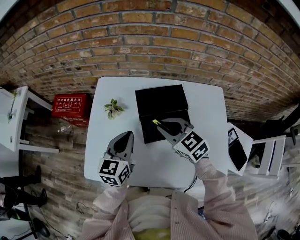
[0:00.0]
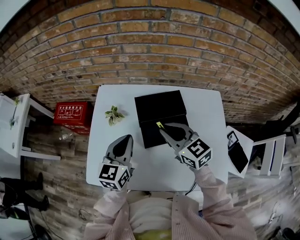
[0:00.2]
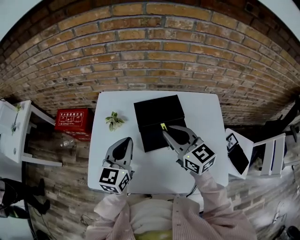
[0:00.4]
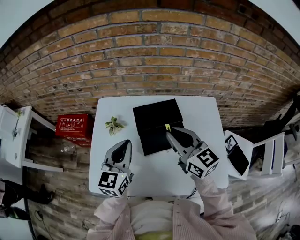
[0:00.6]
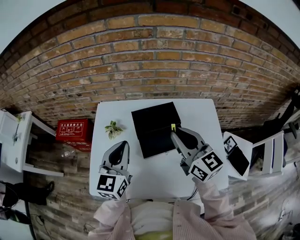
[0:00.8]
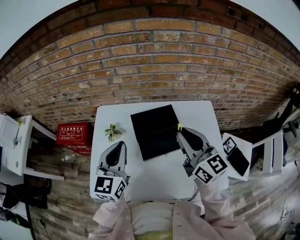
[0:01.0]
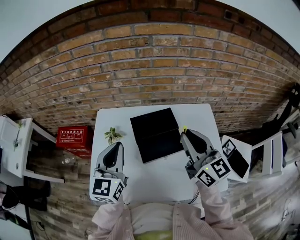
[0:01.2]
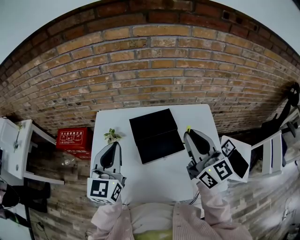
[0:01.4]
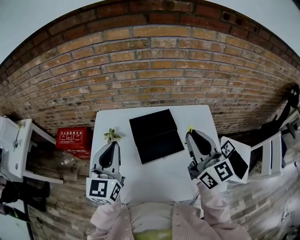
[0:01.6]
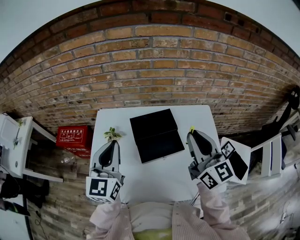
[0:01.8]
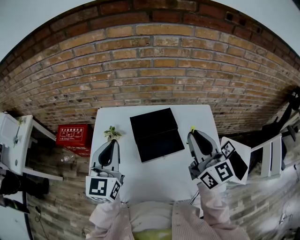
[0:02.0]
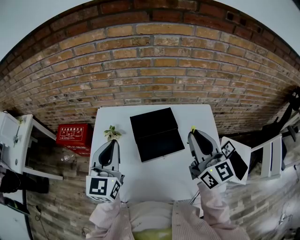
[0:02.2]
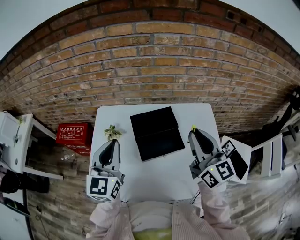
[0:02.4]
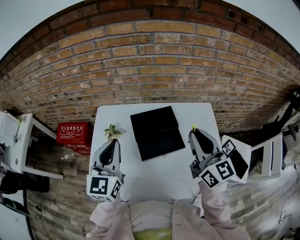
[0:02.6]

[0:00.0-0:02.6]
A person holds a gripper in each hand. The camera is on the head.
0:00.0 to 0:01.2: The right gripper shifts roughly 20 cm upward and to the right, and tilts its fingers some 30 degrees upward, while the left gripper moves upward, roughly 15 cm.
0:01.2 to 0:02.6: The grippers make only small movements.

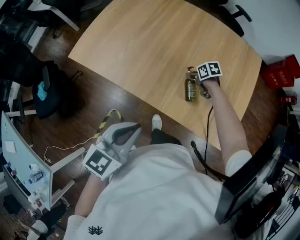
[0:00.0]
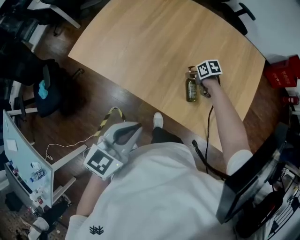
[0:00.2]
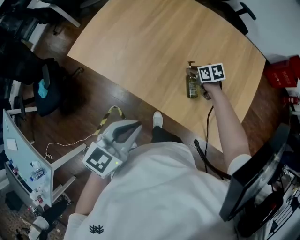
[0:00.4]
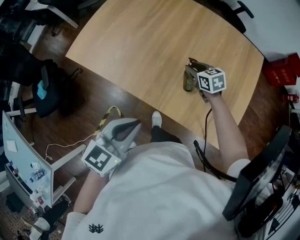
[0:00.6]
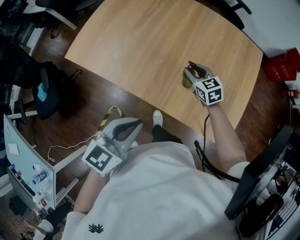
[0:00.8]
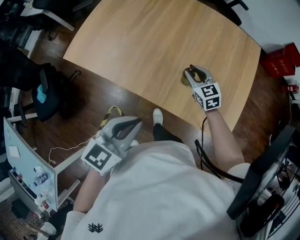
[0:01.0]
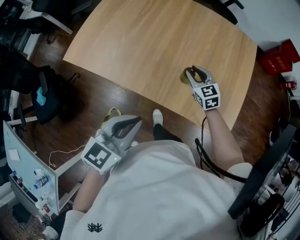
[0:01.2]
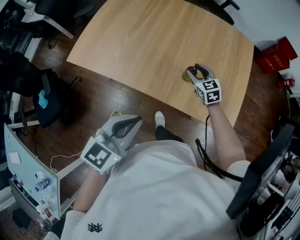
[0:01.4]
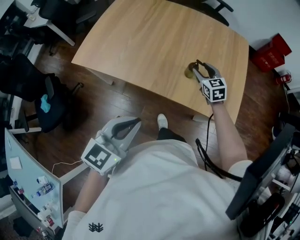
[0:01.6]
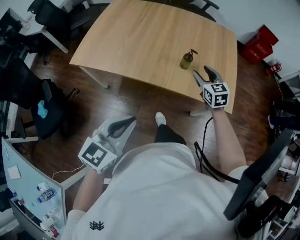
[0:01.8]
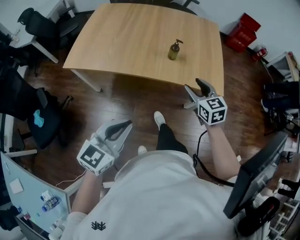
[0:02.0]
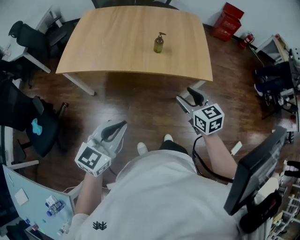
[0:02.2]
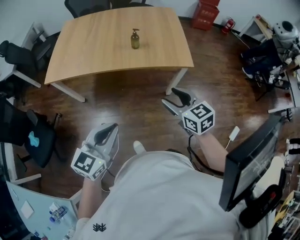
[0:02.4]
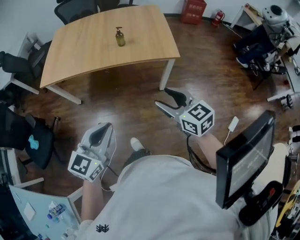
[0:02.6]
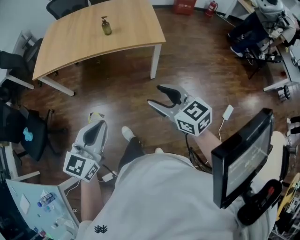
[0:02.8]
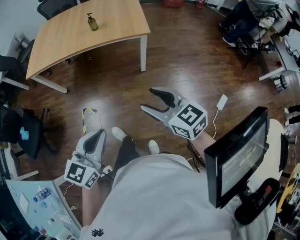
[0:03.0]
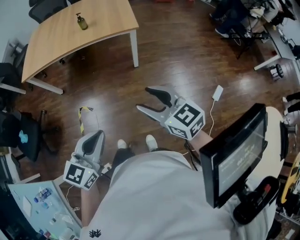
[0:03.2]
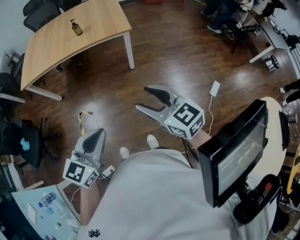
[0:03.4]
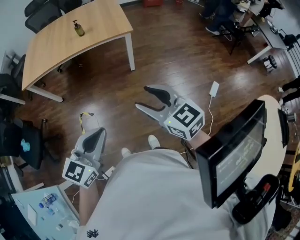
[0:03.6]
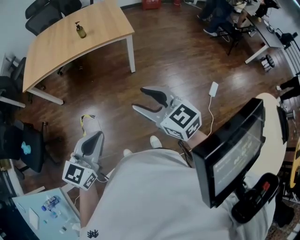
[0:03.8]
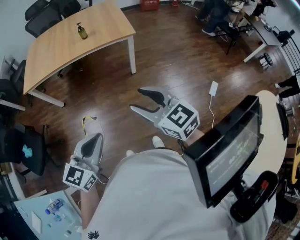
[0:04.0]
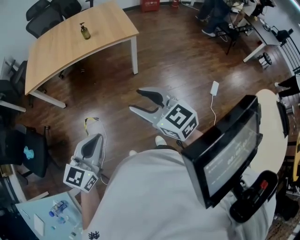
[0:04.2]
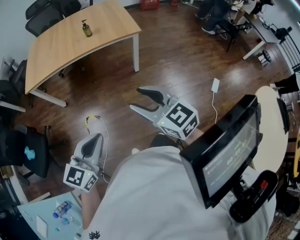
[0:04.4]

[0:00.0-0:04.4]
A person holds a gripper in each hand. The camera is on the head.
0:00.0 to 0:01.4: The right gripper is displaced upward by about 10 cm, and turns by roughly 50 degrees.
0:01.4 to 0:03.0: Both grippers are carried backward, roughly 50 cm. The right gripper swivels roughly 20 degrees.
0:03.0 to 0:04.4: The left gripper travels to the left by roughly 10 cm. Meanwhile the right gripper goes some 15 cm to the left and backward.

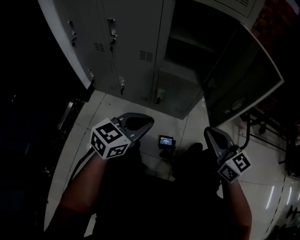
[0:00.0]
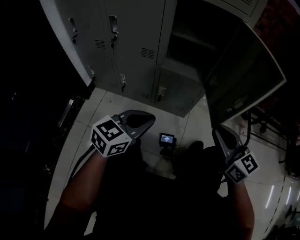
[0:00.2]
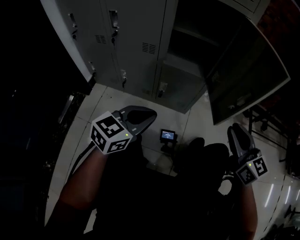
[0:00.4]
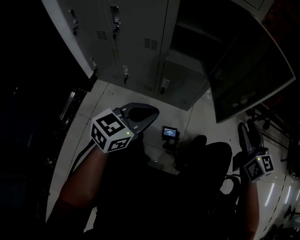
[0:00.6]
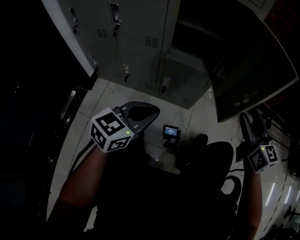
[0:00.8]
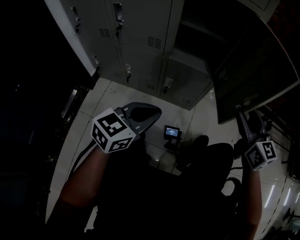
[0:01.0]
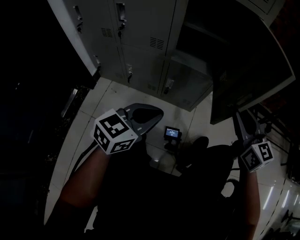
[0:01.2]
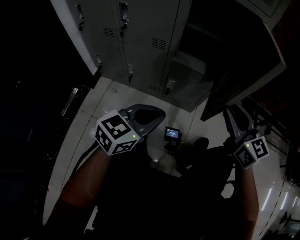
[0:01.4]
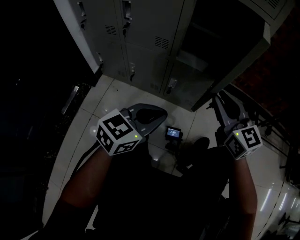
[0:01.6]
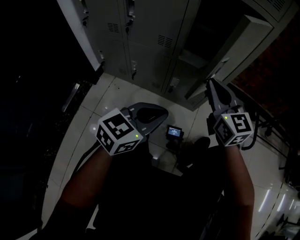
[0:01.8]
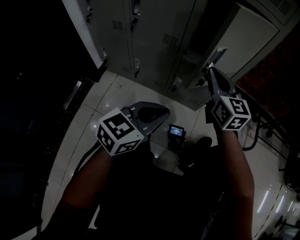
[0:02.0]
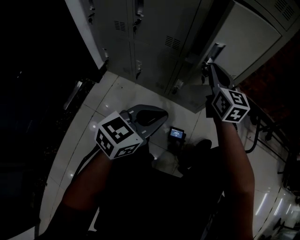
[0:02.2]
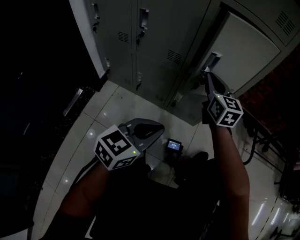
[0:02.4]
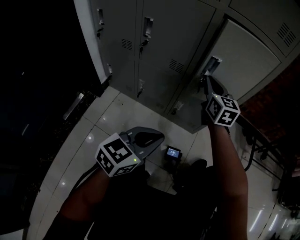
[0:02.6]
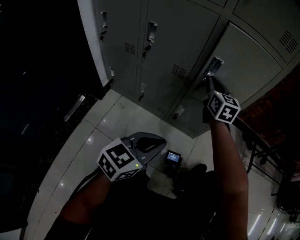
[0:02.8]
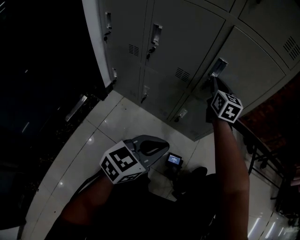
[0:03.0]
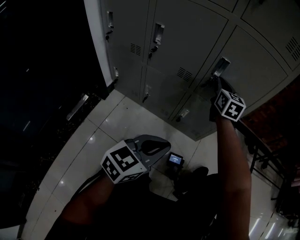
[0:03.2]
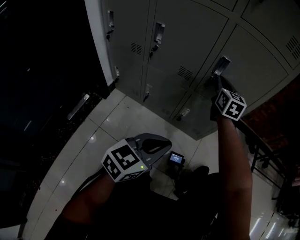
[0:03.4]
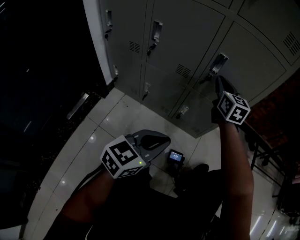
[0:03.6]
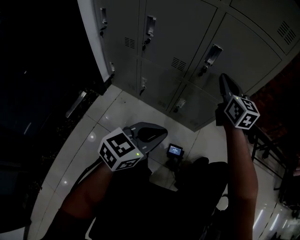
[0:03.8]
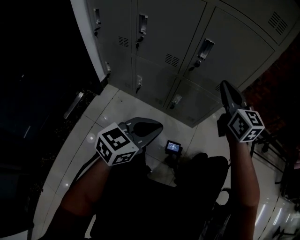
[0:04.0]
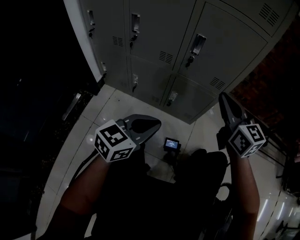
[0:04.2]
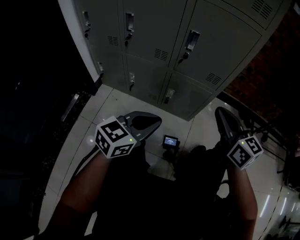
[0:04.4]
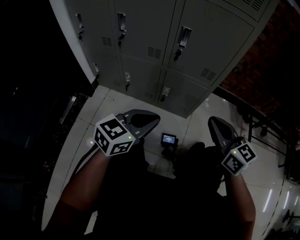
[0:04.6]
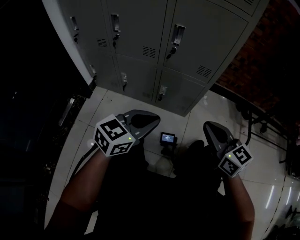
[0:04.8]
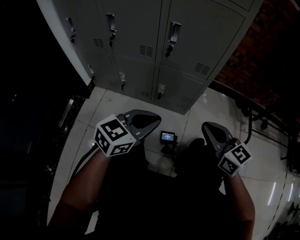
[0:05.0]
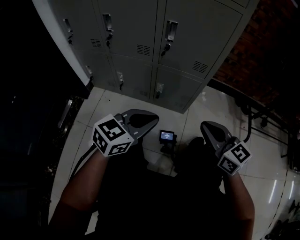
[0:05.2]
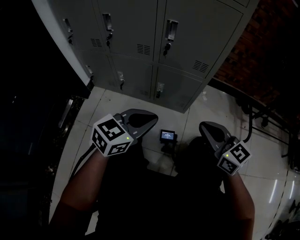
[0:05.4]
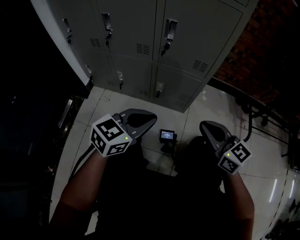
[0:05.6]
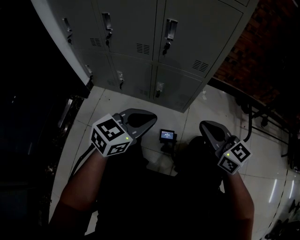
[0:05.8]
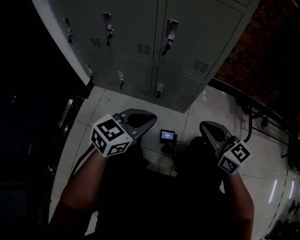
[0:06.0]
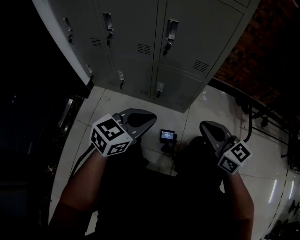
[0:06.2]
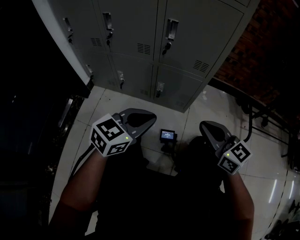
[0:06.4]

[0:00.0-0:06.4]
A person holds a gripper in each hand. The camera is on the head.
0:00.0 to 0:01.6: The right gripper goes about 10 cm forward, moves roughly 10 cm to the right and comes back, and opens up.
0:01.6 to 0:03.2: The right gripper heads forward and to the left, covering roughly 25 cm.
0:03.2 to 0:04.8: The left gripper heads to the right, covering about 5 cm; the right gripper travels backward and to the right by about 35 cm, and changes its angle by some 30 degrees.
0:04.8 to 0:06.4: The grippers stay close to where they were, moving slightly.

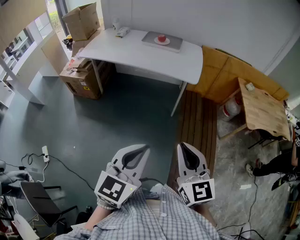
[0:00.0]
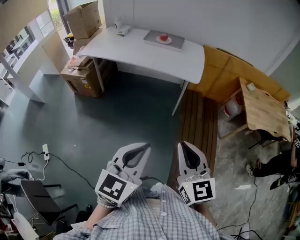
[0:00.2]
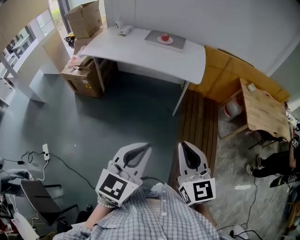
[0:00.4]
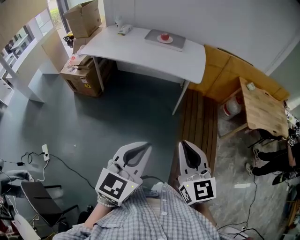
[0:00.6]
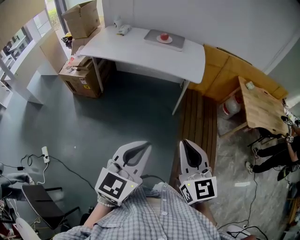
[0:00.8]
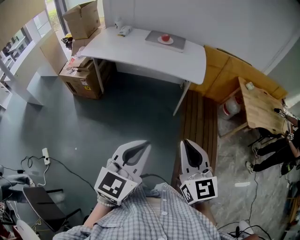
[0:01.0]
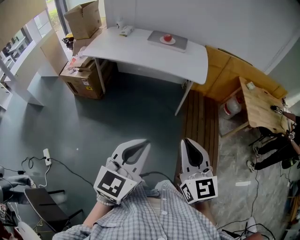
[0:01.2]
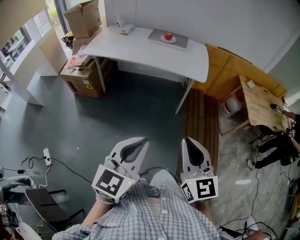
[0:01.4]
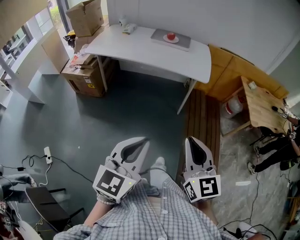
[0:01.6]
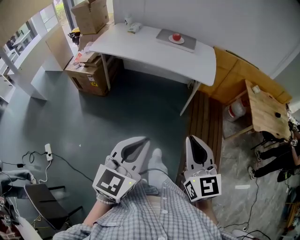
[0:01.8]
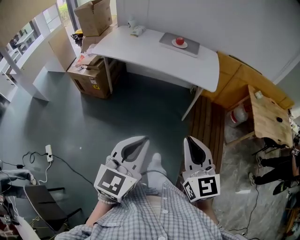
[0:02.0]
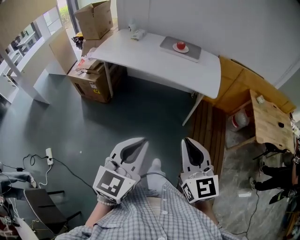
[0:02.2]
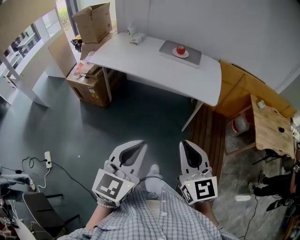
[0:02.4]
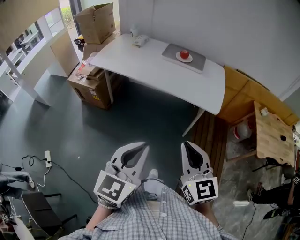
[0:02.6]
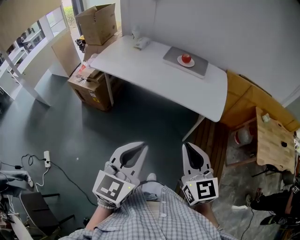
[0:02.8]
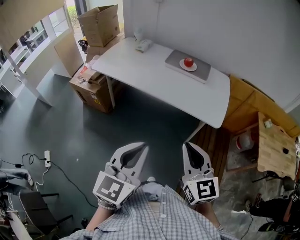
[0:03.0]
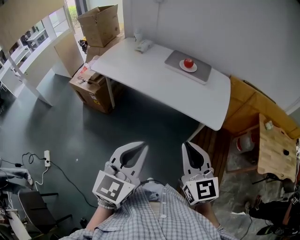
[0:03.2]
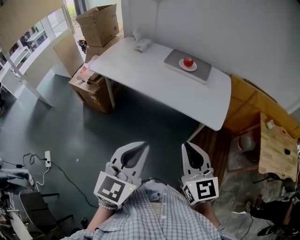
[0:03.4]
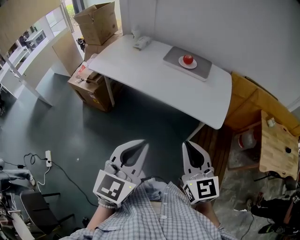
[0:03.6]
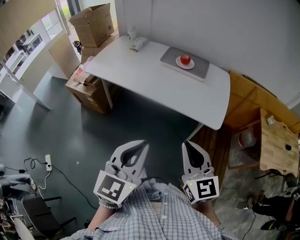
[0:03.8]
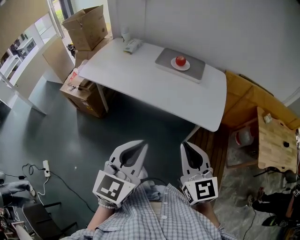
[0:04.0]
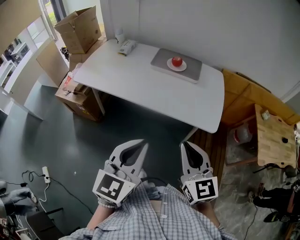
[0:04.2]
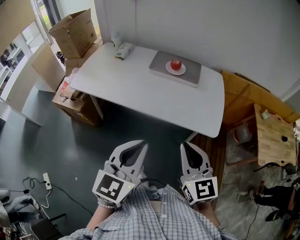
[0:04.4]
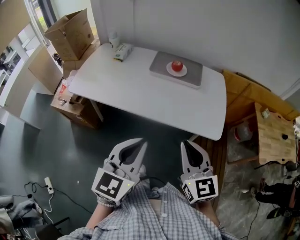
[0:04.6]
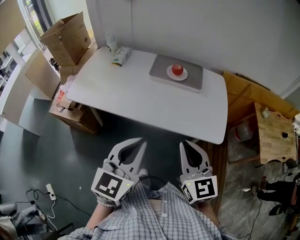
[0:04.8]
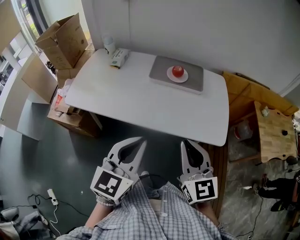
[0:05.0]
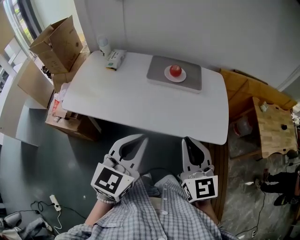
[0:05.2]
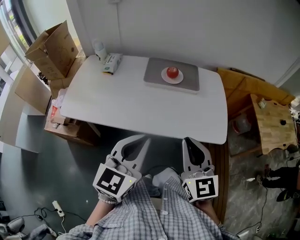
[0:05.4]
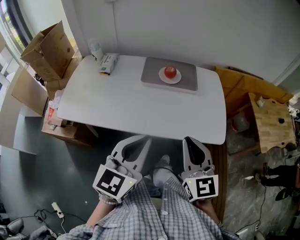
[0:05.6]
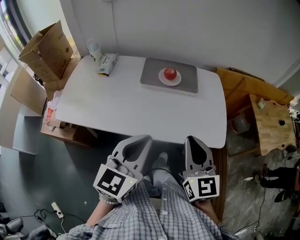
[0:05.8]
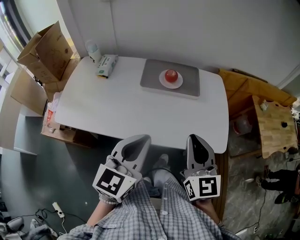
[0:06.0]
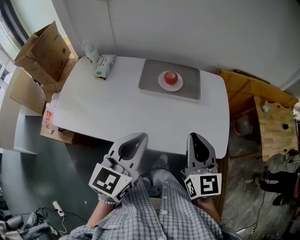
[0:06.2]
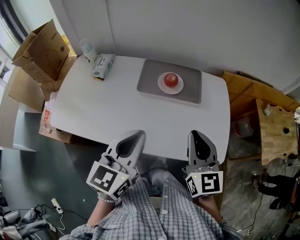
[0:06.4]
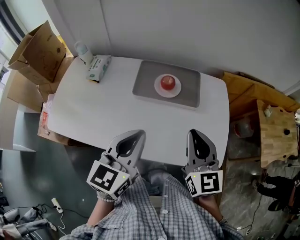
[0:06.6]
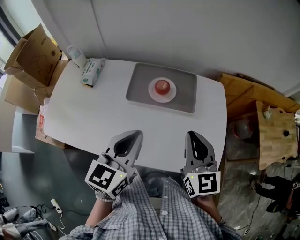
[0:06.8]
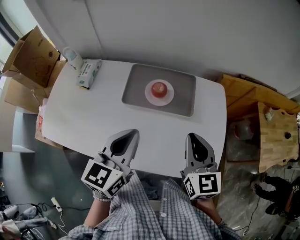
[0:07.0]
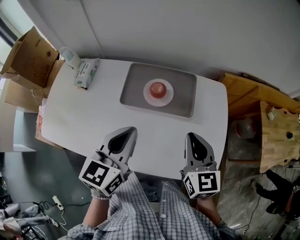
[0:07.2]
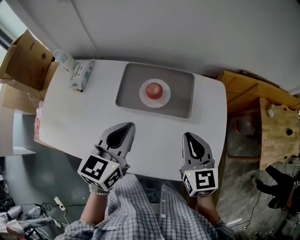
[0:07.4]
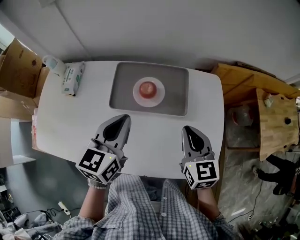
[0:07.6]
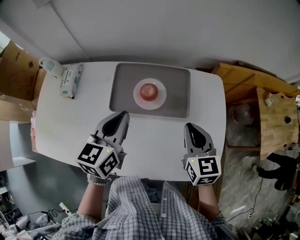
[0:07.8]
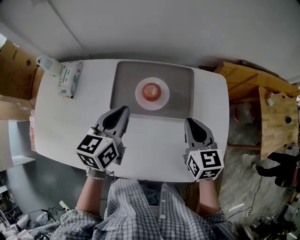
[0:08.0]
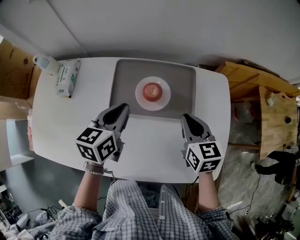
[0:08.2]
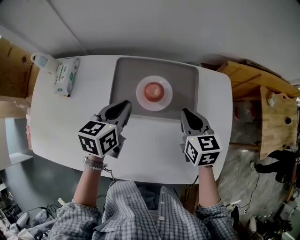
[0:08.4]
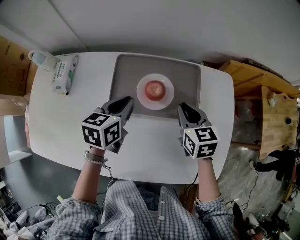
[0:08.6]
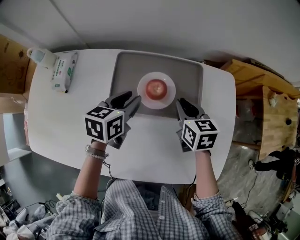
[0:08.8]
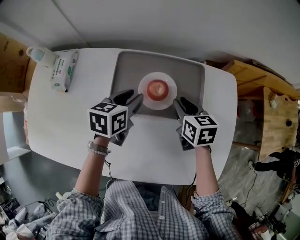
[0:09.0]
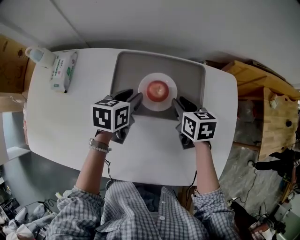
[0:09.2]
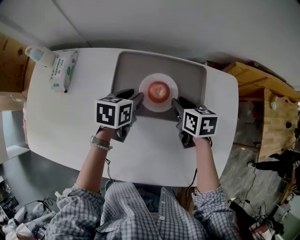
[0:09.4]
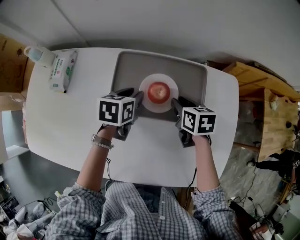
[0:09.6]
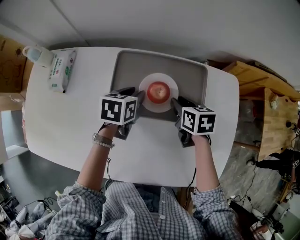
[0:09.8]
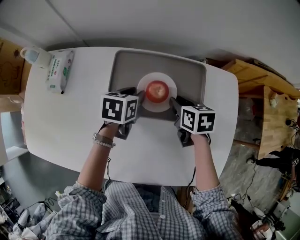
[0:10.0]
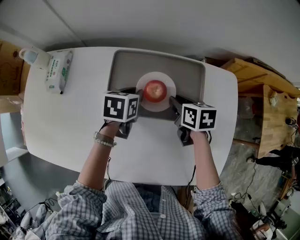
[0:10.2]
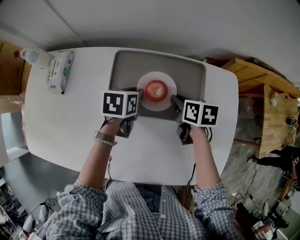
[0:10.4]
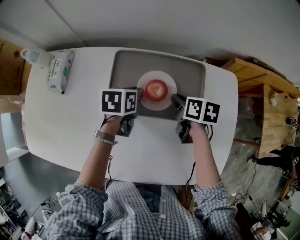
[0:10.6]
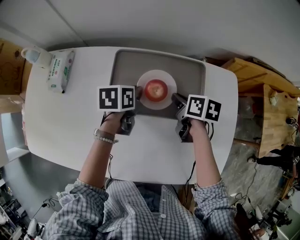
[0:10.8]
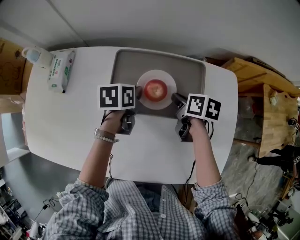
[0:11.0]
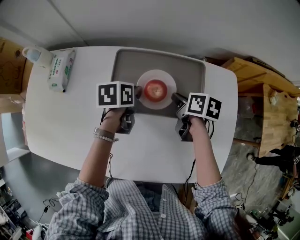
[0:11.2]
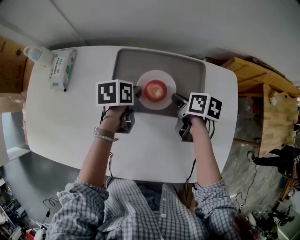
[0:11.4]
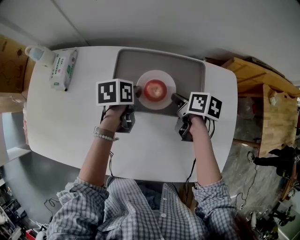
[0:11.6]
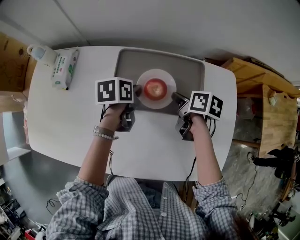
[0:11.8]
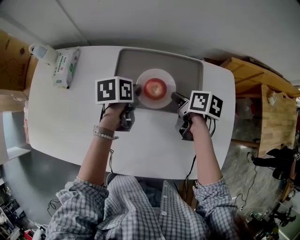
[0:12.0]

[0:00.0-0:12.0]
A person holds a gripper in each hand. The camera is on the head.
0:00.0 to 0:01.6: The grippers both shift to the left by about 10 cm.
0:01.6 to 0:03.0: The two grippers go roughly 25 cm forward.
0:03.0 to 0:04.4: The grippers both shift forward by some 15 cm.
0:04.4 to 0:06.0: Both grippers move forward, some 20 cm.
0:06.0 to 0:07.6: Both grippers move forward, some 25 cm. The right gripper turns by some 20 degrees.
0:07.6 to 0:09.0: The right gripper moves downward, forward and to the left, approximately 20 cm, and turns by roughly 20 degrees; the left gripper is displaced downward and forward by roughly 20 cm, turns by about 30 degrees, and opens its fingers.
0:09.0 to 0:10.4: The left gripper heads downward, covering roughly 5 cm.
0:10.4 to 0:12.0: There are only small adjustments of the grippers.
